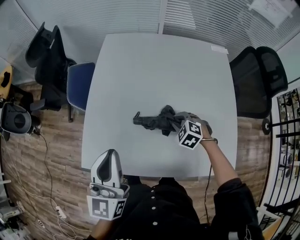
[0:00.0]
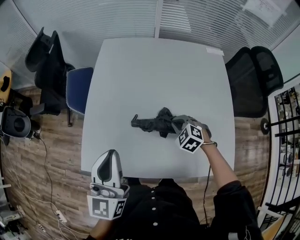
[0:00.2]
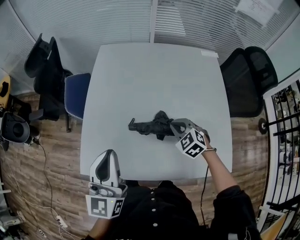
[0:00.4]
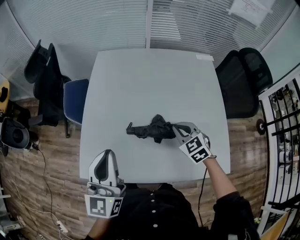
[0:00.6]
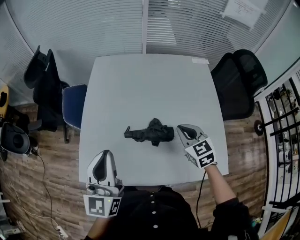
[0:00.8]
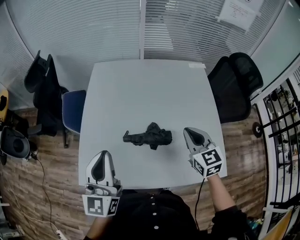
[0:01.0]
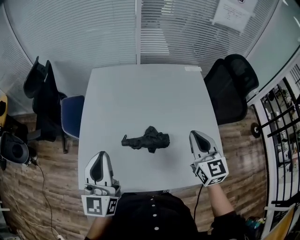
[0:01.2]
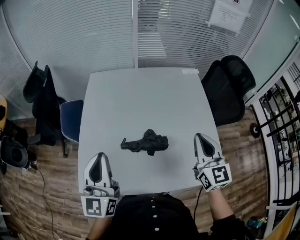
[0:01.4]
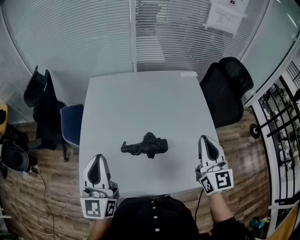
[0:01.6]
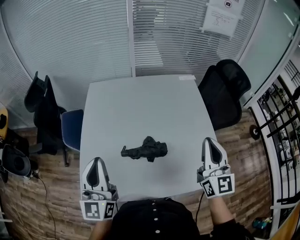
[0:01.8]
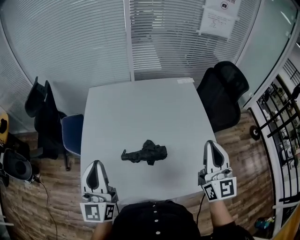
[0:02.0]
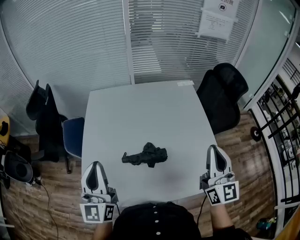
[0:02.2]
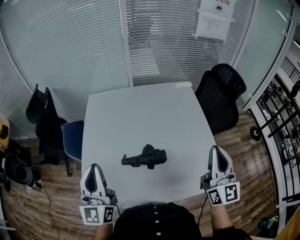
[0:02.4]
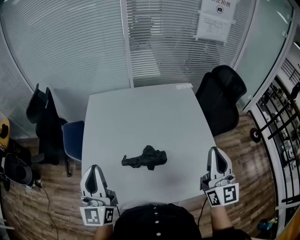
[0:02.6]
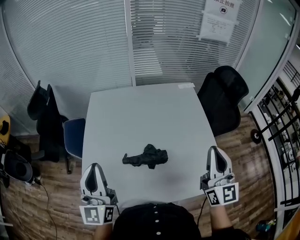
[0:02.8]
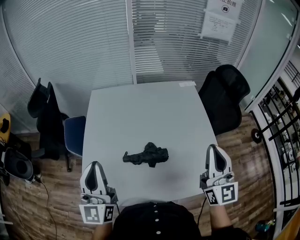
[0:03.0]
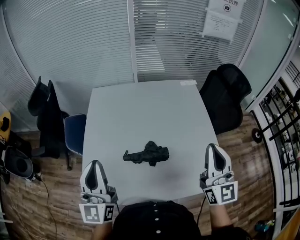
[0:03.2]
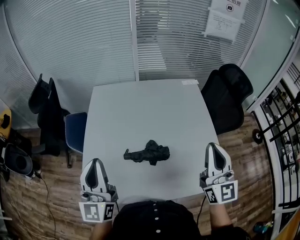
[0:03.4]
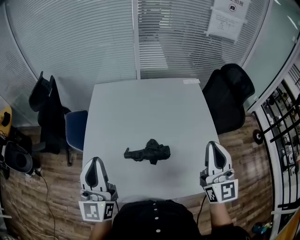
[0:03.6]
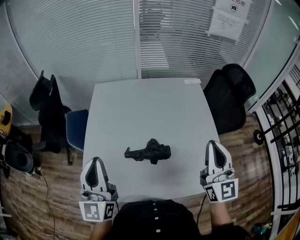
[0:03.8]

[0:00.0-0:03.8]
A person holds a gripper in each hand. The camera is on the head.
0:00.0 to 0:01.2: The right gripper shifts approximately 25 cm upward, and tilts its fingers approximately 50 degrees upward.
0:01.2 to 0:02.6: The right gripper moves upward, to the right and backward, some 15 cm, and swivels some 30 degrees.
0:02.6 to 0:03.8: There are only small adjustments of the grippers.

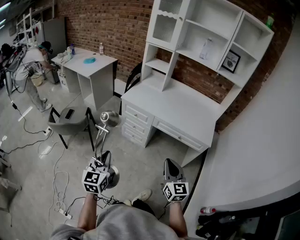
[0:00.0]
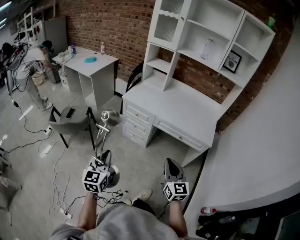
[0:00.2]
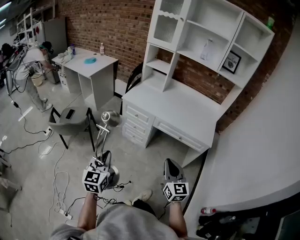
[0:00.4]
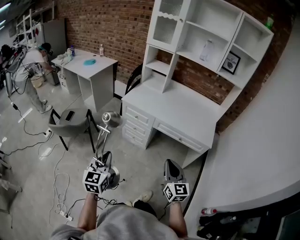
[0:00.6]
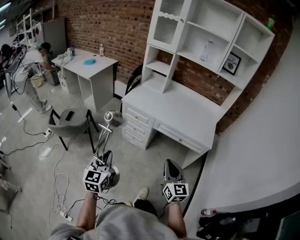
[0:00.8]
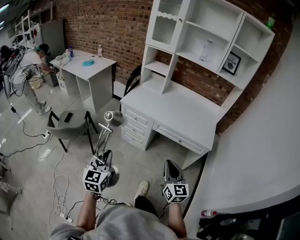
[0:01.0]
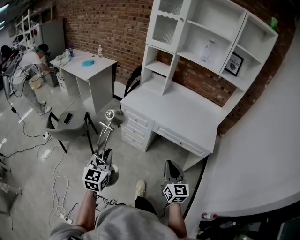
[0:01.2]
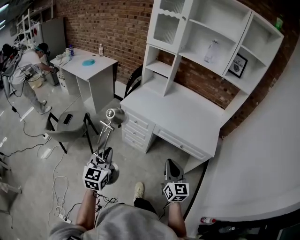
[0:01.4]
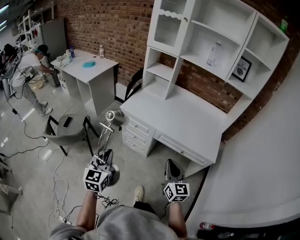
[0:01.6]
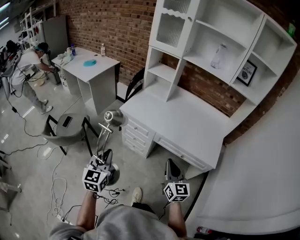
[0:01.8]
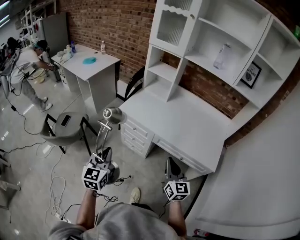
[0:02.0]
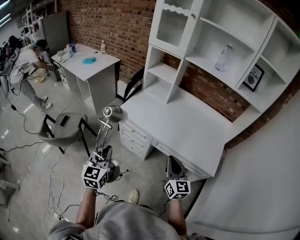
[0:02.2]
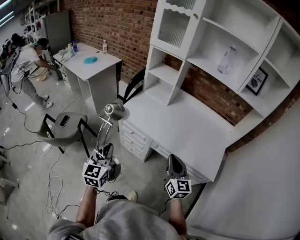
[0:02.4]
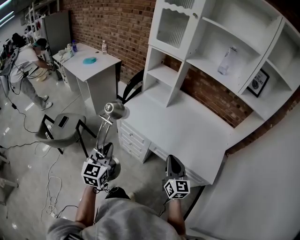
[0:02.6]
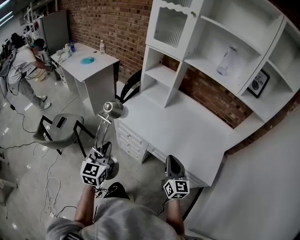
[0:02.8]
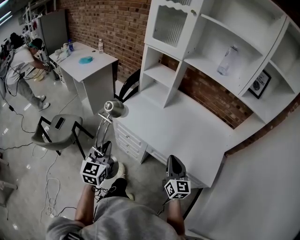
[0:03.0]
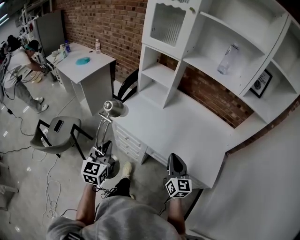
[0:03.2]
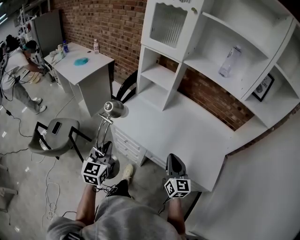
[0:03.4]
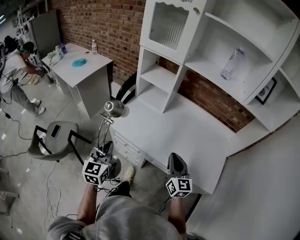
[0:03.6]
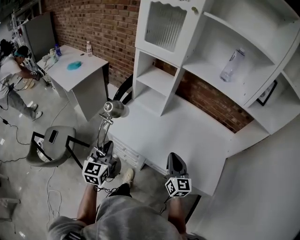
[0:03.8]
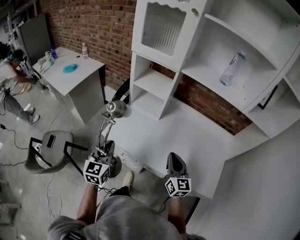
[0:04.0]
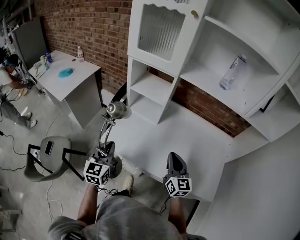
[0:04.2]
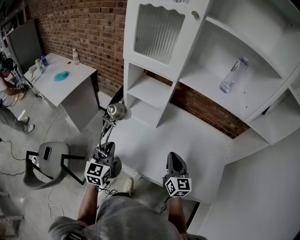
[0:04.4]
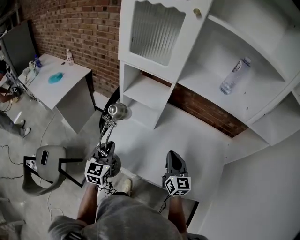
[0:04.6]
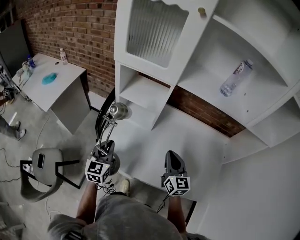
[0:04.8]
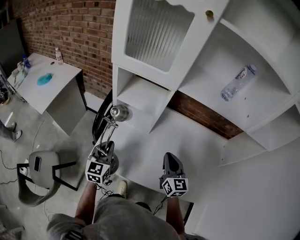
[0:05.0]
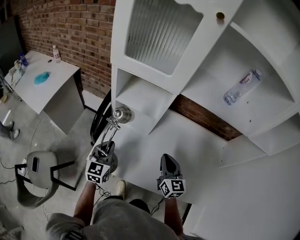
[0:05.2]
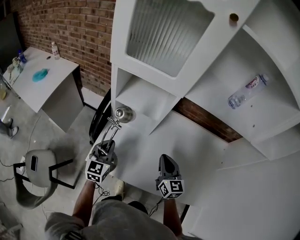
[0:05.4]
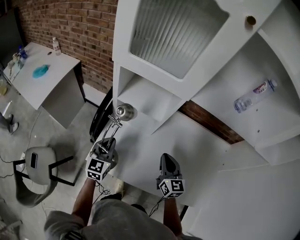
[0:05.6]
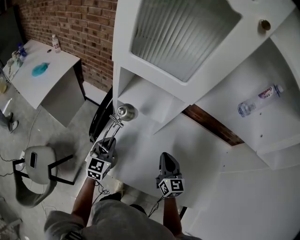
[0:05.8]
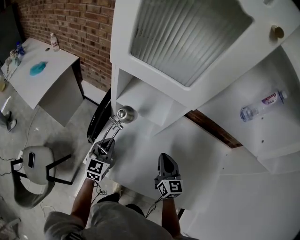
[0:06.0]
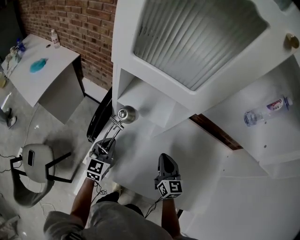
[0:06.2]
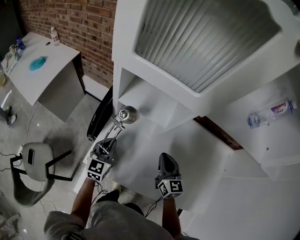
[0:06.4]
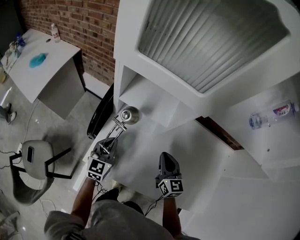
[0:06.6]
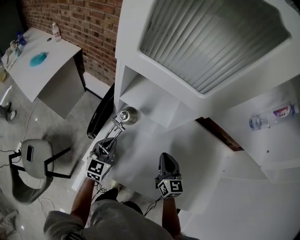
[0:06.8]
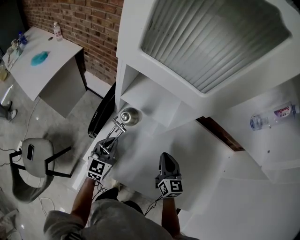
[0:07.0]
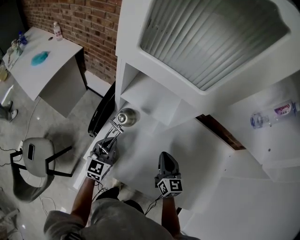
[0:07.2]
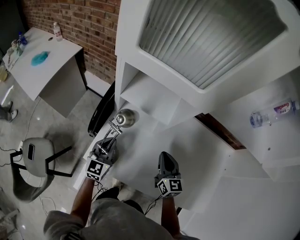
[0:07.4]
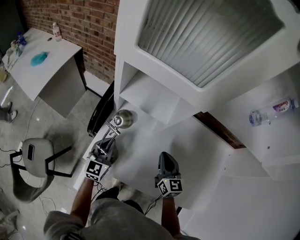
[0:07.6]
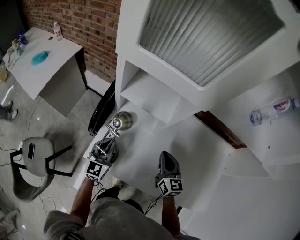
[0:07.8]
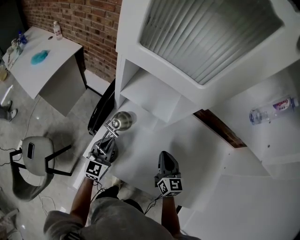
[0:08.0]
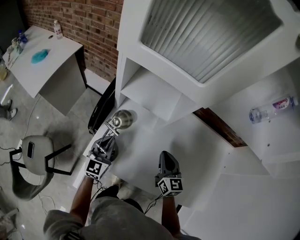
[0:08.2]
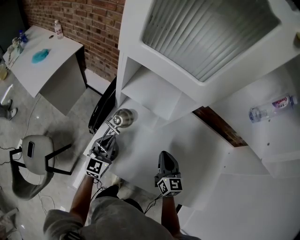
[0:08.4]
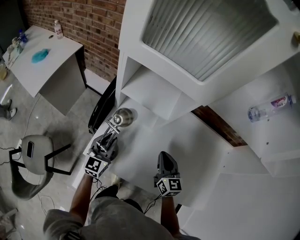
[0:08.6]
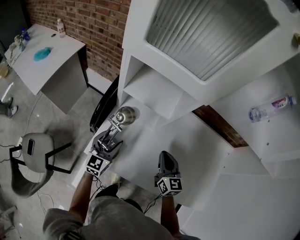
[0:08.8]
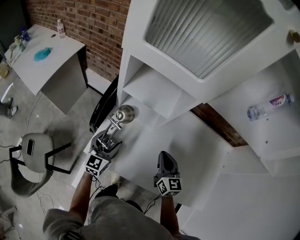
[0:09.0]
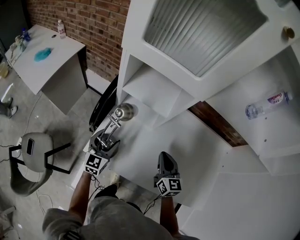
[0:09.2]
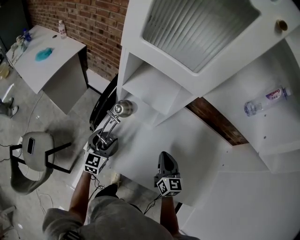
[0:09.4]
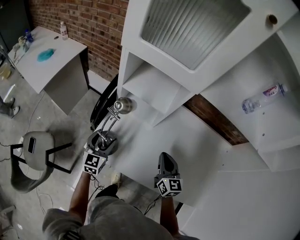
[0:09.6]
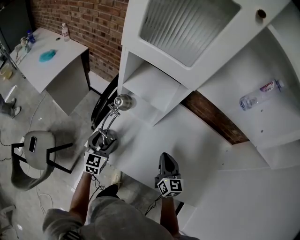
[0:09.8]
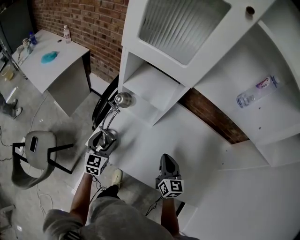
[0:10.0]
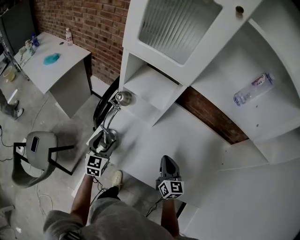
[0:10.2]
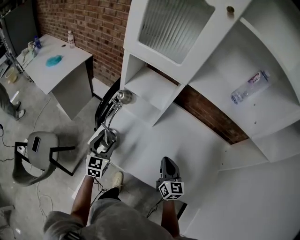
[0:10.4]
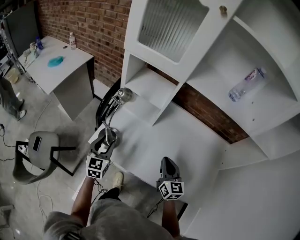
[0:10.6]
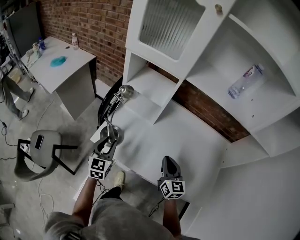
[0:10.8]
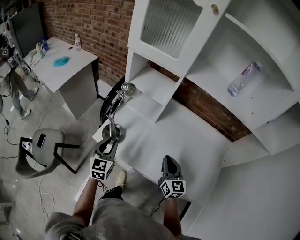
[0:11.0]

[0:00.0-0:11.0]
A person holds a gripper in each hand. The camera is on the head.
0:00.0 to 0:01.6: The two grippers go approximately 15 cm forward.
0:01.6 to 0:03.2: Both grippers travel together forward, approximately 25 cm.
0:03.2 to 0:04.8: The grippers both shift forward by some 30 cm.
0:04.8 to 0:06.2: The two grippers go approximately 15 cm forward and downward.
0:06.2 to 0:07.8: There are only small adjustments of the grippers.
0:07.8 to 0:09.4: The left gripper opens its fingers.
0:09.4 to 0:11.0: The right gripper heads backward, covering roughly 10 cm. The left gripper moves backward and upward, about 15 cm, and closes its fingers.

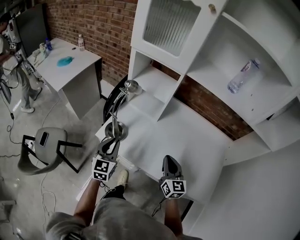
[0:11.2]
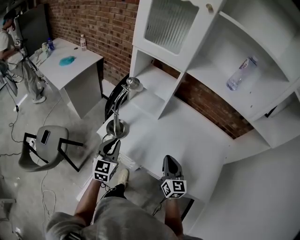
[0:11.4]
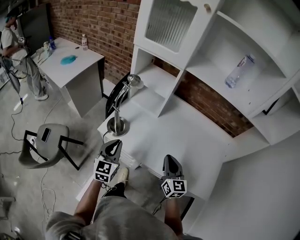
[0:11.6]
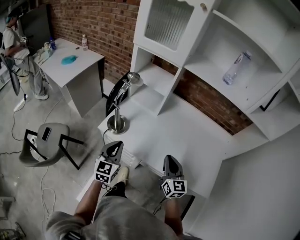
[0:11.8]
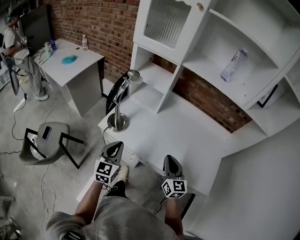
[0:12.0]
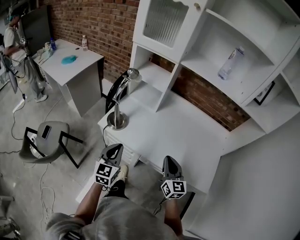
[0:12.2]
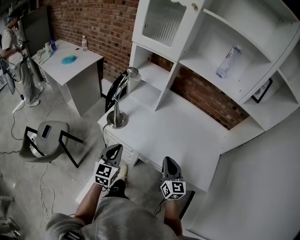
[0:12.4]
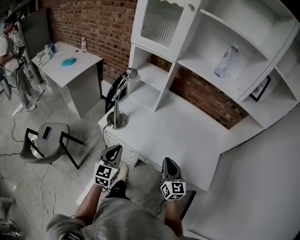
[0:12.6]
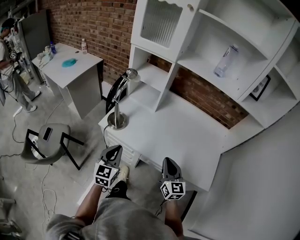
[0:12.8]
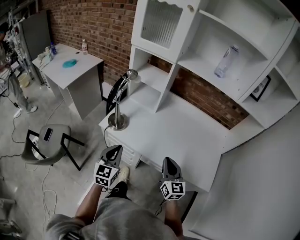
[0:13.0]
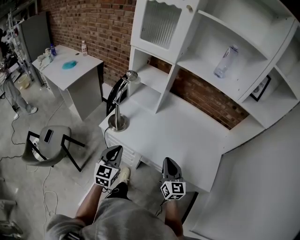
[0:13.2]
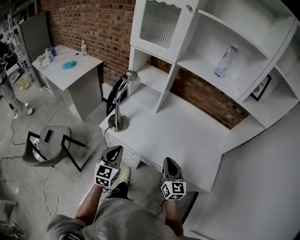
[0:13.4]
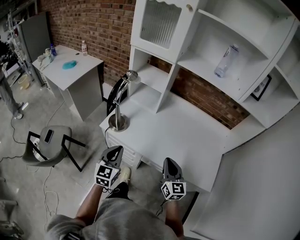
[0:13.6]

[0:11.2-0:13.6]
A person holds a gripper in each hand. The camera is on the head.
0:11.2 to 0:12.4: Both grippers move backward, about 15 cm.
0:12.4 to 0:13.6: Neither gripper changes place.

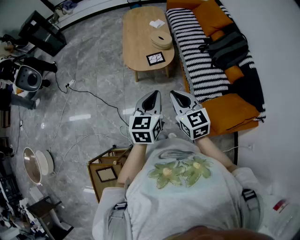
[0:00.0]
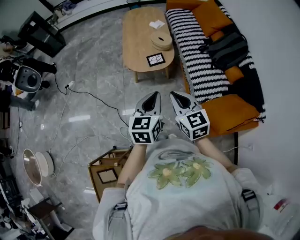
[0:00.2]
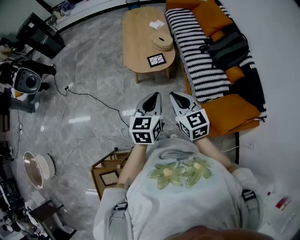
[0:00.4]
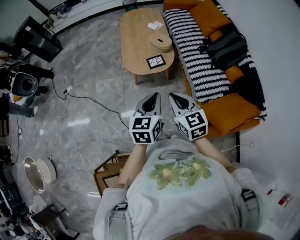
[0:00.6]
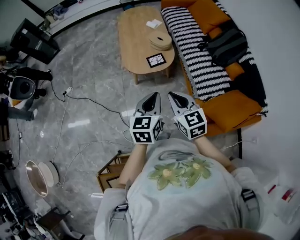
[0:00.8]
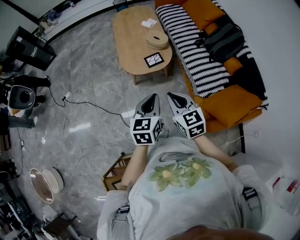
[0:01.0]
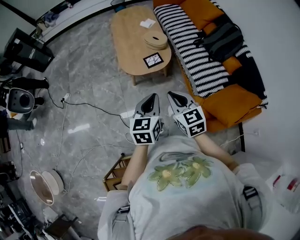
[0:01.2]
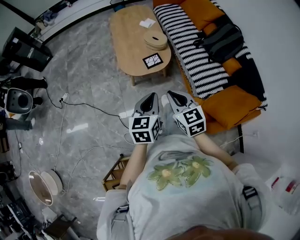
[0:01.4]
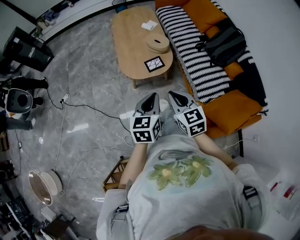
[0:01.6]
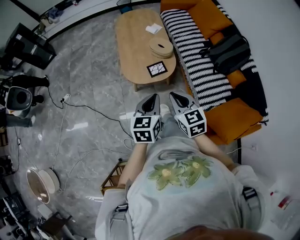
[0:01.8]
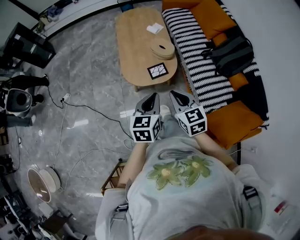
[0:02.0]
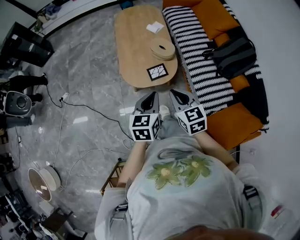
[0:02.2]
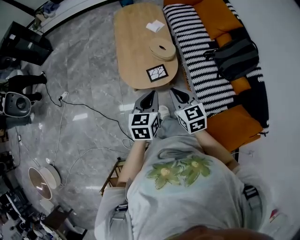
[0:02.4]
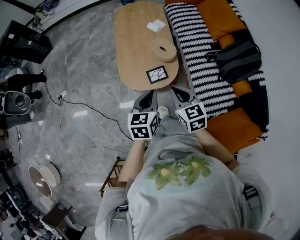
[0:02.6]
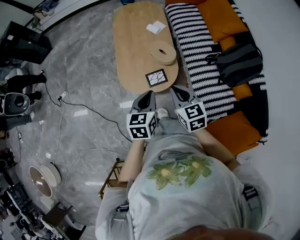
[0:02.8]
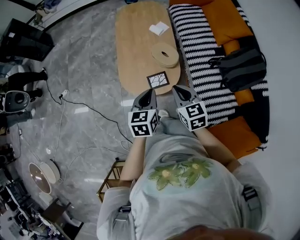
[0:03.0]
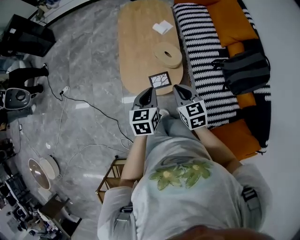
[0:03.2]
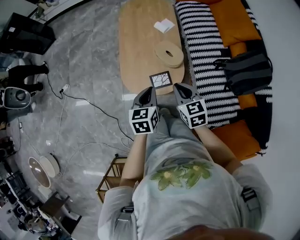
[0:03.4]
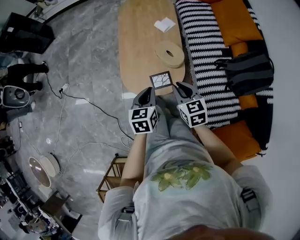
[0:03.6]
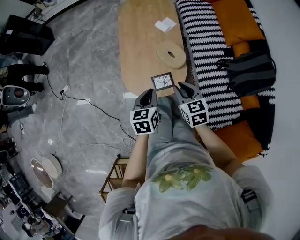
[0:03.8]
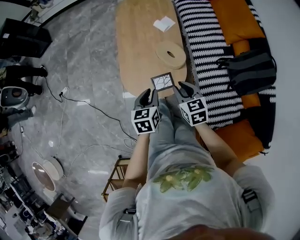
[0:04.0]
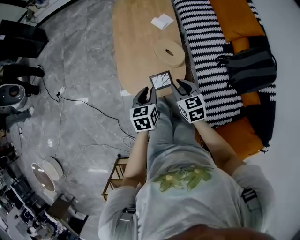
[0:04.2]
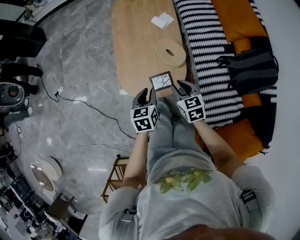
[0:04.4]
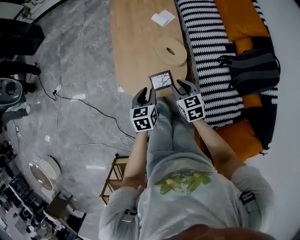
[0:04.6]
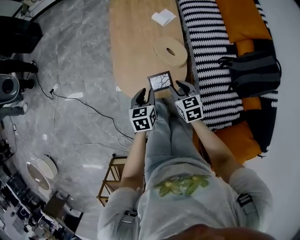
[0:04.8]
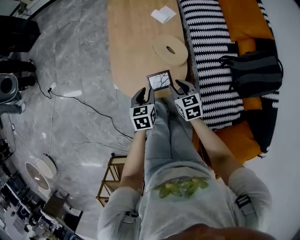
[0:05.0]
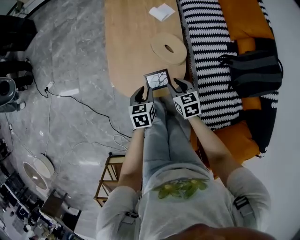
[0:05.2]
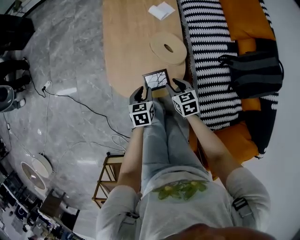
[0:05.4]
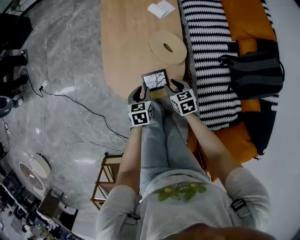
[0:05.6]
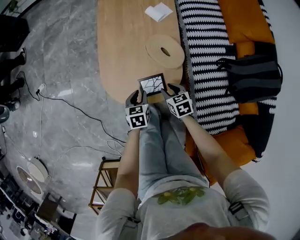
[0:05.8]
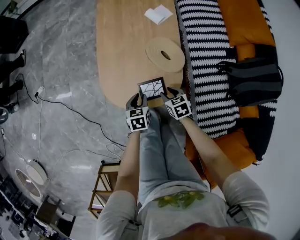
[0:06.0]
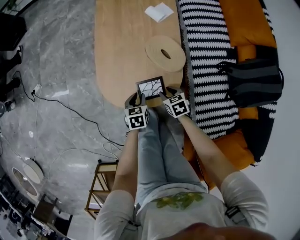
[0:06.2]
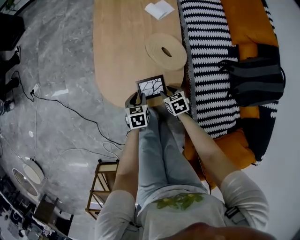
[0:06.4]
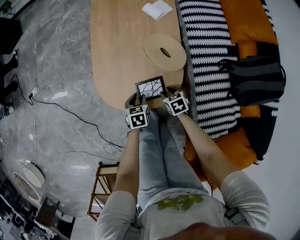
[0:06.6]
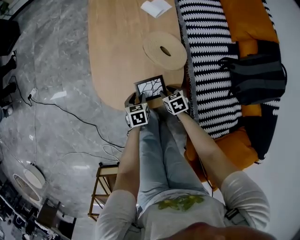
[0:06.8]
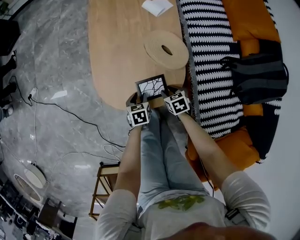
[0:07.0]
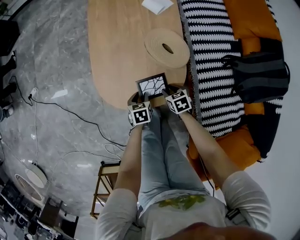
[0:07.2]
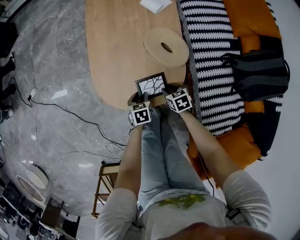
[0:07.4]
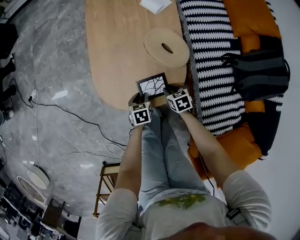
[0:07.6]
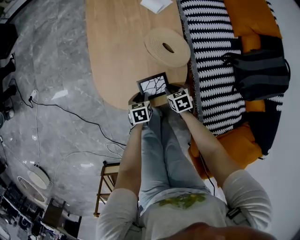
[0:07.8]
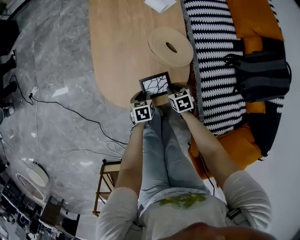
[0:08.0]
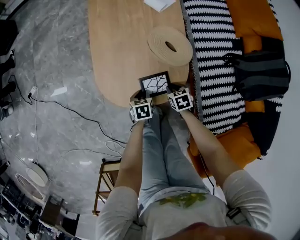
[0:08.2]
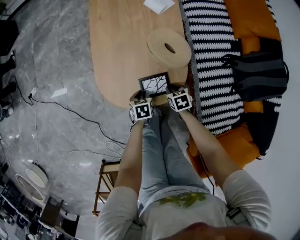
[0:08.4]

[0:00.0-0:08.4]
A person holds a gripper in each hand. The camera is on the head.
0:00.0 to 0:01.4: Both grippers travel together to the left and forward, some 10 cm.
0:01.4 to 0:02.8: Both grippers move forward, roughly 25 cm.
0:02.8 to 0:04.2: Both grippers travel together downward and forward, some 15 cm. The right gripper opens its fingers.
0:04.2 to 0:05.6: The grippers both shift downward by about 20 cm.
0:05.6 to 0:07.0: Both grippers move downward, about 15 cm.
0:07.0 to 0:08.4: The grippers move only a little.
